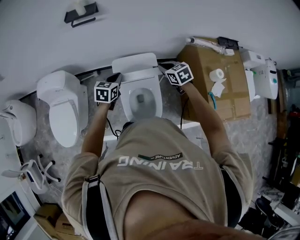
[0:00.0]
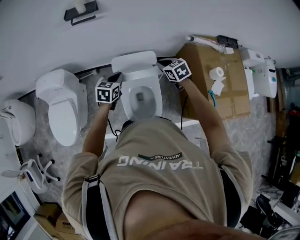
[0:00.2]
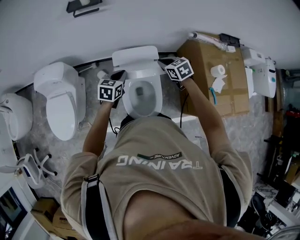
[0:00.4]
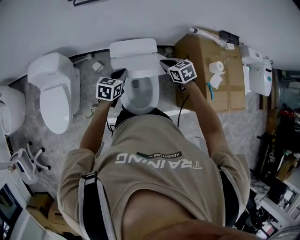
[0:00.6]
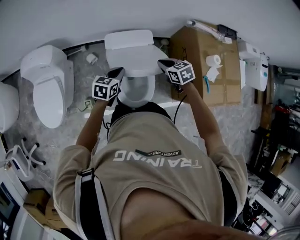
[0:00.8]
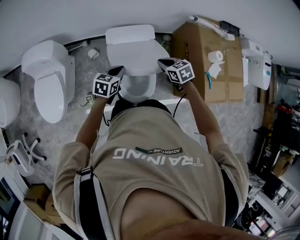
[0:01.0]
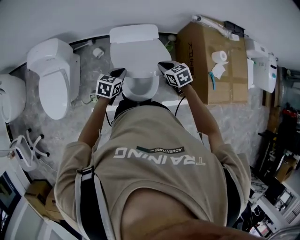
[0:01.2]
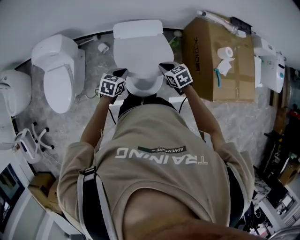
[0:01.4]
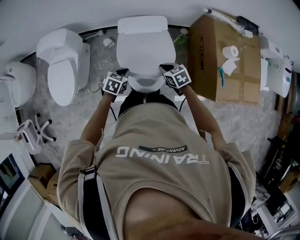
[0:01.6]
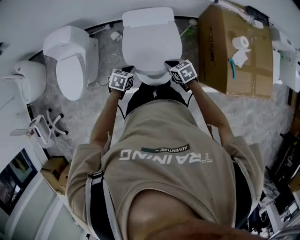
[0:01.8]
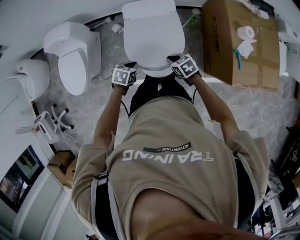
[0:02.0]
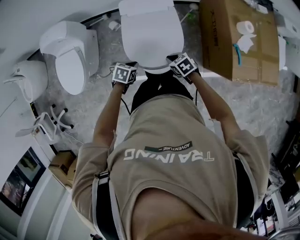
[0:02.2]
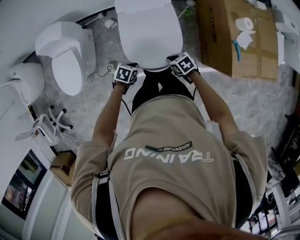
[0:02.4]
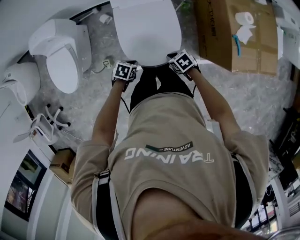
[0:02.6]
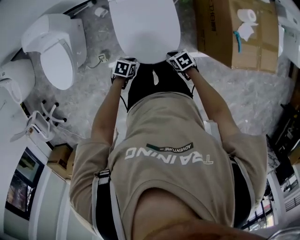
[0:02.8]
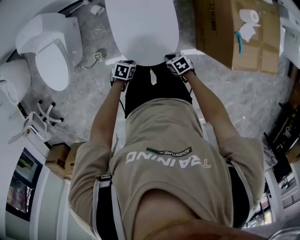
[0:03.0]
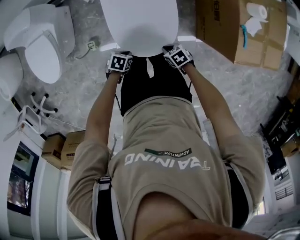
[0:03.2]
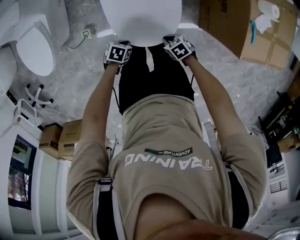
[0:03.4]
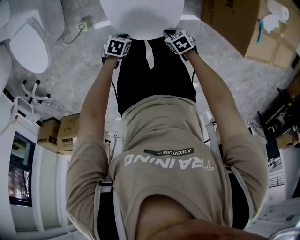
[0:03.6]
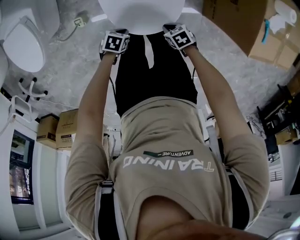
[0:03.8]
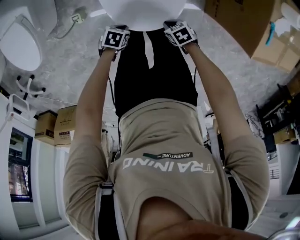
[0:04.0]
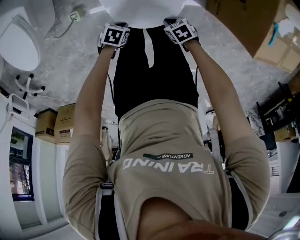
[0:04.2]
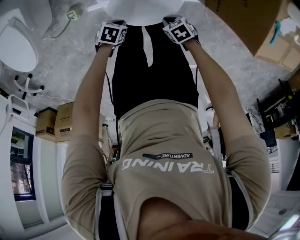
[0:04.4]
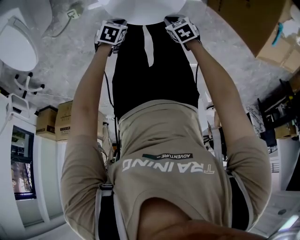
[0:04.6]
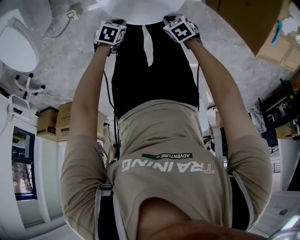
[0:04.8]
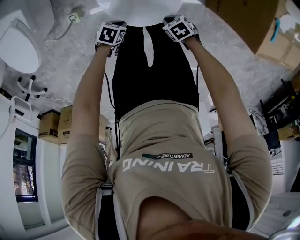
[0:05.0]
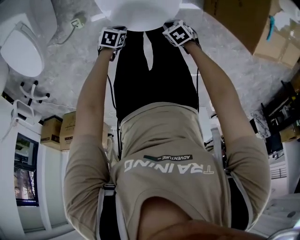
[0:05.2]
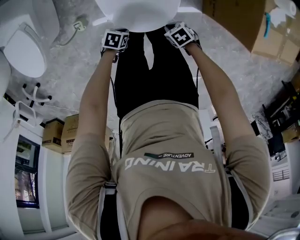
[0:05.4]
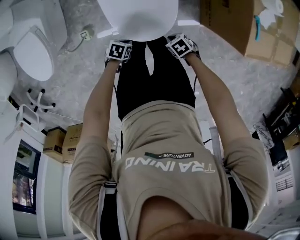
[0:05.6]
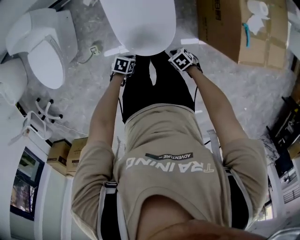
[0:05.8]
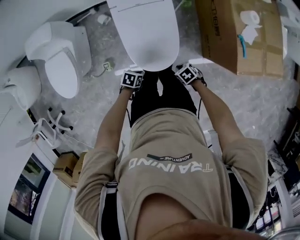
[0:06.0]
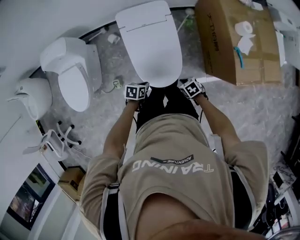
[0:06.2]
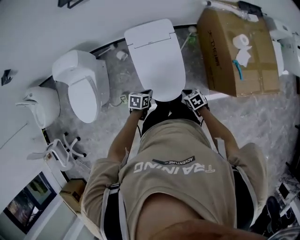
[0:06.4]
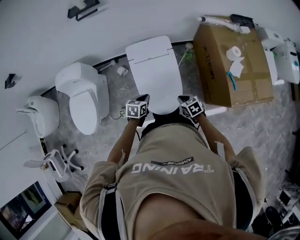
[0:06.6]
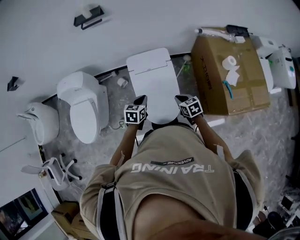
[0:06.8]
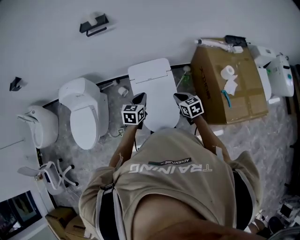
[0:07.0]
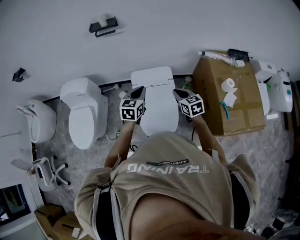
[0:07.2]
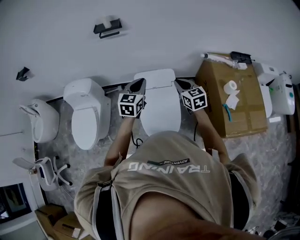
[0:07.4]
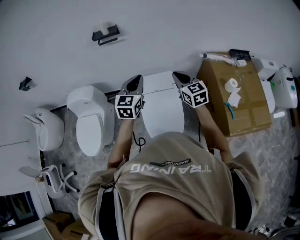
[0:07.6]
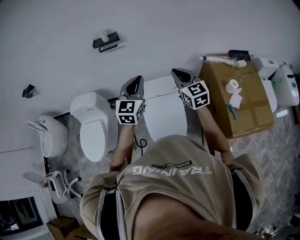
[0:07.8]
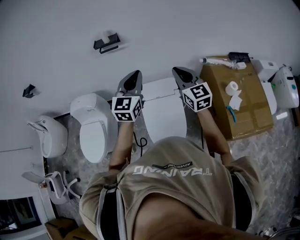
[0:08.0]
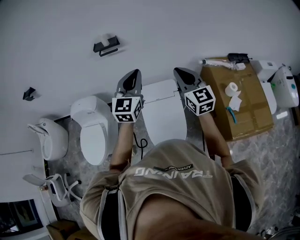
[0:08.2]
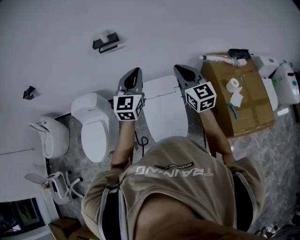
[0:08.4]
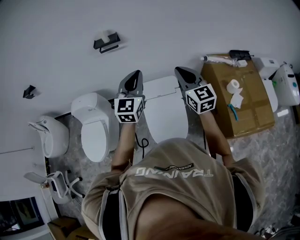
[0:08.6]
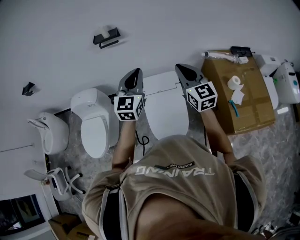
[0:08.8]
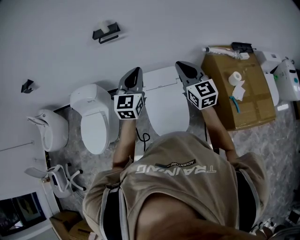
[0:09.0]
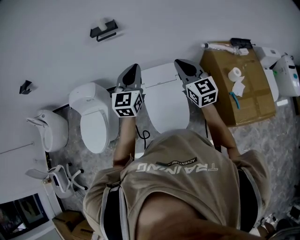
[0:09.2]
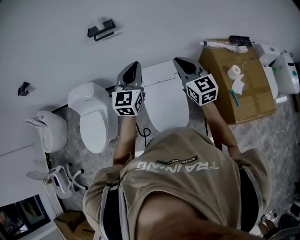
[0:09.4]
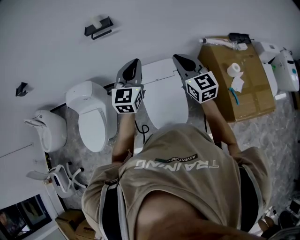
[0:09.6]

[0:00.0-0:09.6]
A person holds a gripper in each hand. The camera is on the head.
0:00.0 to 0:01.6: Both grippers travel together backward and downward, some 20 cm. The left gripper swivels roughly 20 degrees.
0:01.6 to 0:03.2: The grippers both shift downward by about 20 cm. The left gripper changes its angle by about 30 degrees. The right gripper rotates roughly 20 degrees.
0:03.2 to 0:04.8: The grippers both shift downward by roughly 15 cm.
0:04.8 to 0:06.4: Both grippers travel together upward, about 25 cm. The right gripper turns by approximately 30 degrees; the left gripper changes its angle by about 20 degrees.
0:06.4 to 0:08.0: The left gripper moves upward, approximately 50 cm, and angles its fingers upward, by about 50 degrees; the right gripper shifts roughly 50 cm upward and forward, and points its fingers about 60 degrees further upward.
0:08.0 to 0:09.6: The grippers make only small movements.

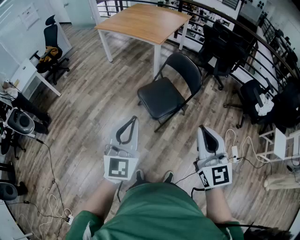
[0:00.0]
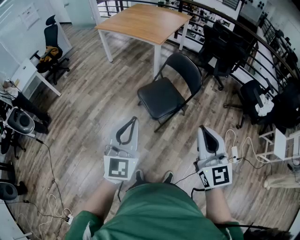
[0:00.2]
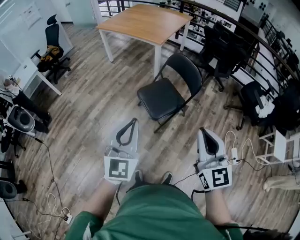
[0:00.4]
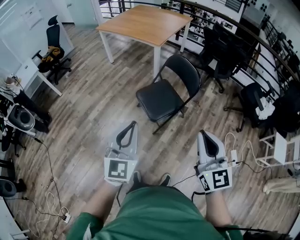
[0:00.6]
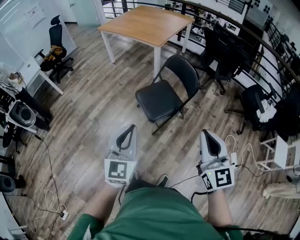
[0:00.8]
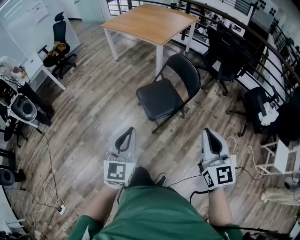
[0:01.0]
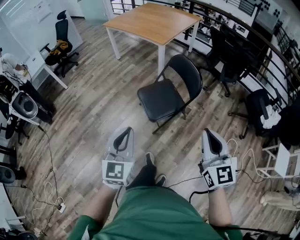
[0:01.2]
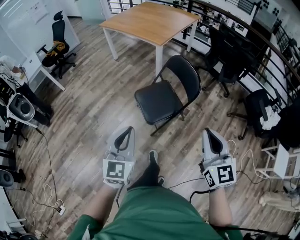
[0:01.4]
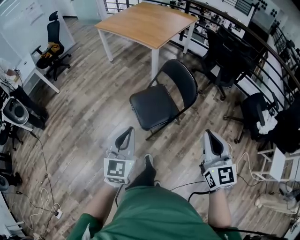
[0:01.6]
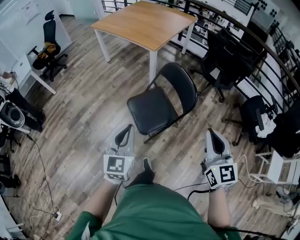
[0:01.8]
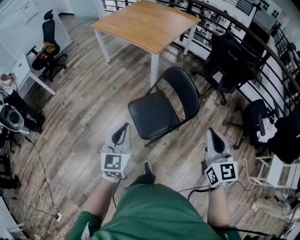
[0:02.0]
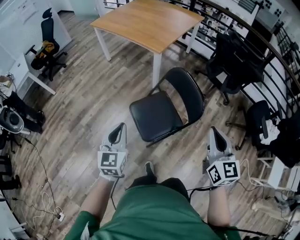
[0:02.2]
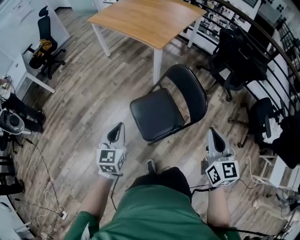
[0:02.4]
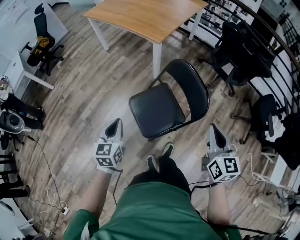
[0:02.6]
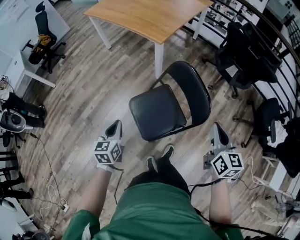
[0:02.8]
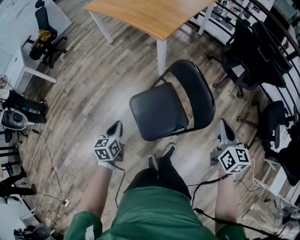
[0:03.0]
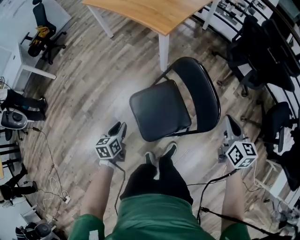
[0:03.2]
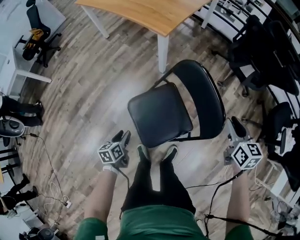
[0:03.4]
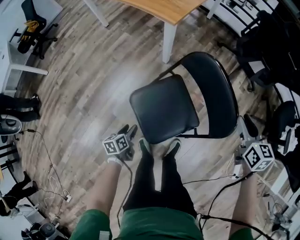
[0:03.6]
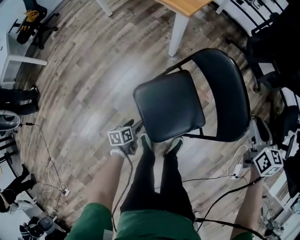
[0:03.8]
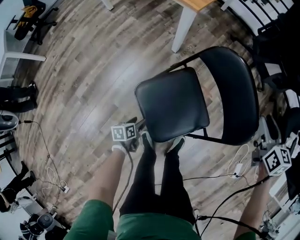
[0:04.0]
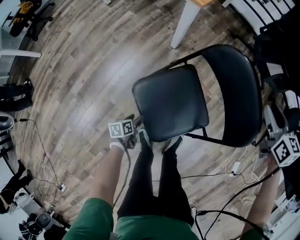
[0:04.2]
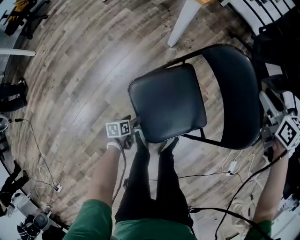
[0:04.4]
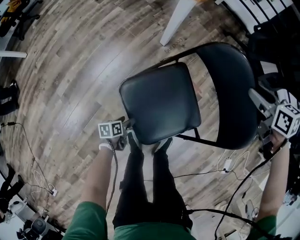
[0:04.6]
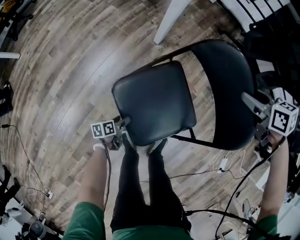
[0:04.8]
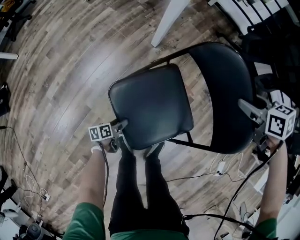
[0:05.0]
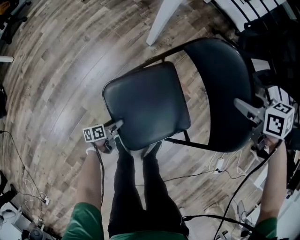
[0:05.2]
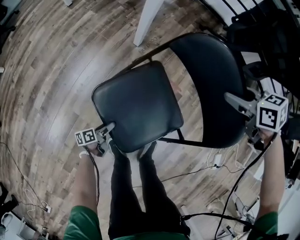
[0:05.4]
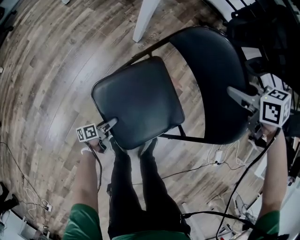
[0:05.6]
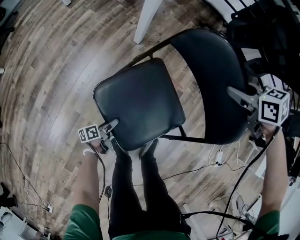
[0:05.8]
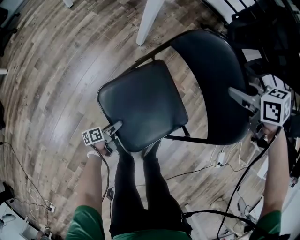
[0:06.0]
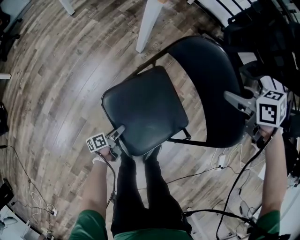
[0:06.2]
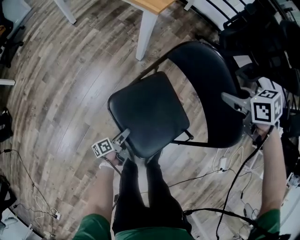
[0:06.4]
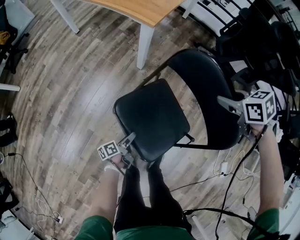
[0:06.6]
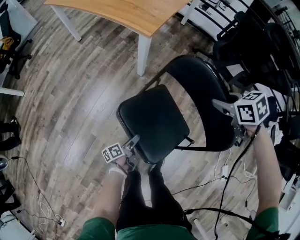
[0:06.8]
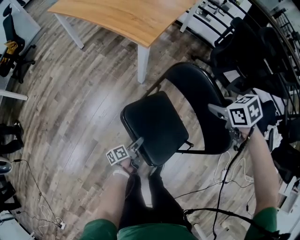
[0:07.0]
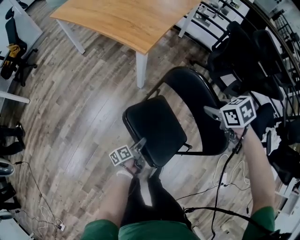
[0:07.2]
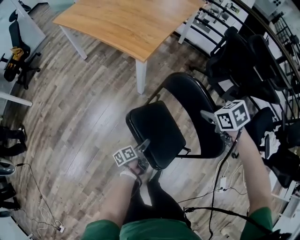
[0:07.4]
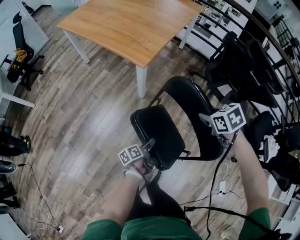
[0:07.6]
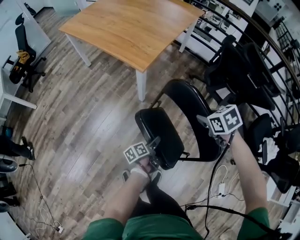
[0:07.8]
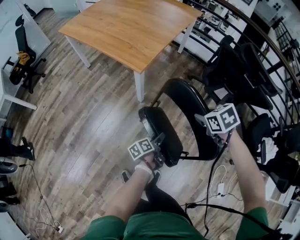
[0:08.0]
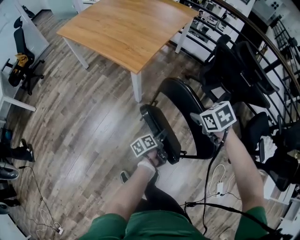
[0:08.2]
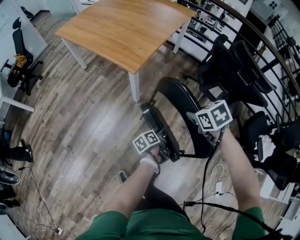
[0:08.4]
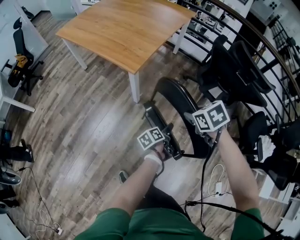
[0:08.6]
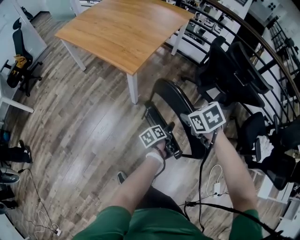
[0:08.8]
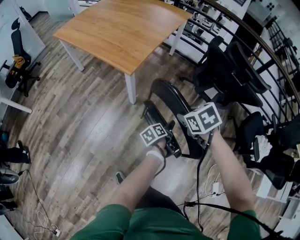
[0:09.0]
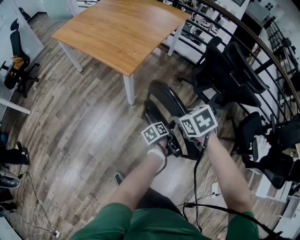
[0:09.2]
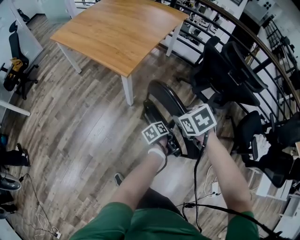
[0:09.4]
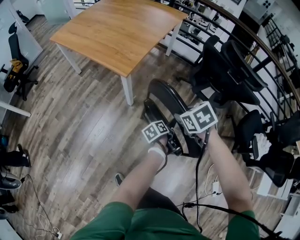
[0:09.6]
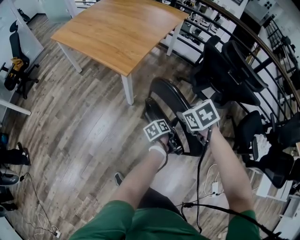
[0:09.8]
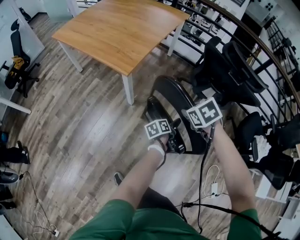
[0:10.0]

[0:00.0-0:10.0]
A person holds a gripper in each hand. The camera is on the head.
0:00.0 to 0:01.4: The left gripper moves to the right and downward, approximately 10 cm. Meanwhile the right gripper shifts approximately 15 cm to the right and forward.
0:01.4 to 0:02.8: The left gripper shifts roughly 40 cm forward and downward, and rotates roughly 30 degrees. Meanwhile the right gripper heads forward, covering about 35 cm, and turns by some 30 degrees.
0:02.8 to 0:04.2: The left gripper moves downward, approximately 50 cm, swivels roughly 50 degrees, and opens. The right gripper moves forward and downward, about 35 cm, rotates approximately 20 degrees, and opens.
0:04.2 to 0:05.8: Both grippers travel together downward, roughly 10 cm. The right gripper swivels about 30 degrees. The left gripper changes its angle by some 30 degrees.
0:05.8 to 0:07.2: The right gripper shifts about 15 cm upward; the left gripper heads upward and to the right, covering some 30 cm.
0:07.2 to 0:08.6: The right gripper travels upward by approximately 10 cm, while the left gripper travels to the right, upward and forward by approximately 25 cm.
0:08.6 to 0:10.0: The left gripper heads to the right, covering about 10 cm.

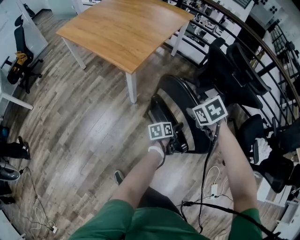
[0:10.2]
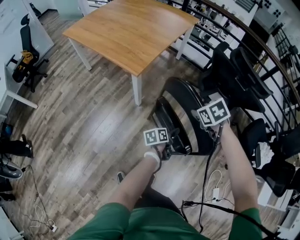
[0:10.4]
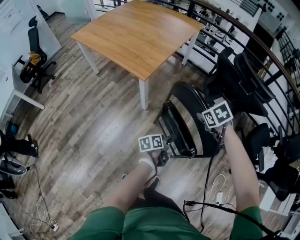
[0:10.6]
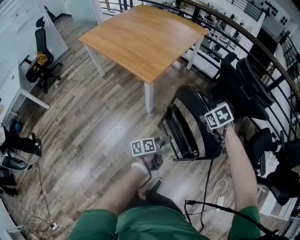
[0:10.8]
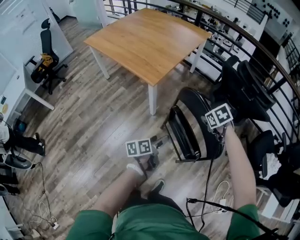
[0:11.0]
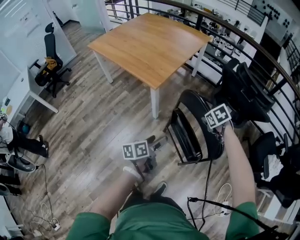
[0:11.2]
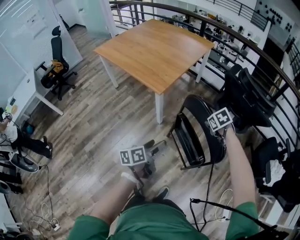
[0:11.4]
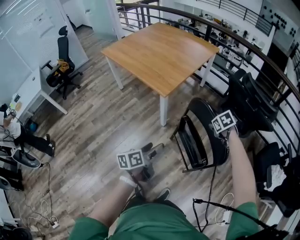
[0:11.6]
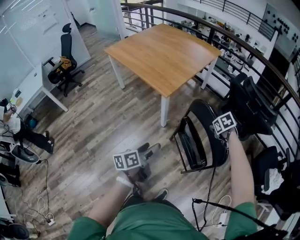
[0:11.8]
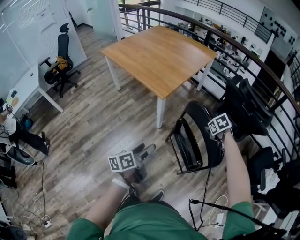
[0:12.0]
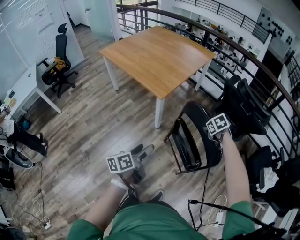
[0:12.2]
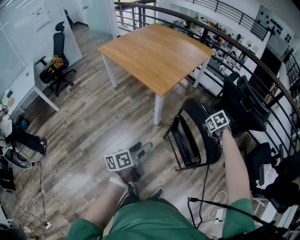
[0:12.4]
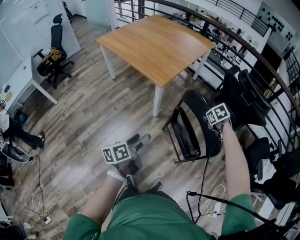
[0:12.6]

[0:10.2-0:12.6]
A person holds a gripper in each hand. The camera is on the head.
0:10.2 to 0:11.4: The left gripper heads to the left, upward and backward, covering roughly 30 cm.
0:11.4 to 0:12.6: The left gripper is displaced to the left by approximately 10 cm.

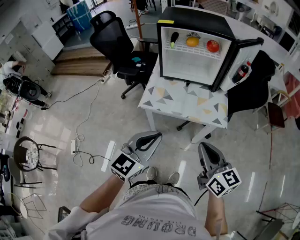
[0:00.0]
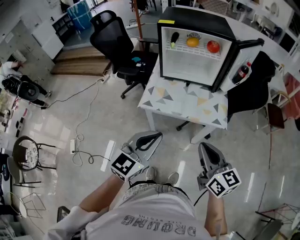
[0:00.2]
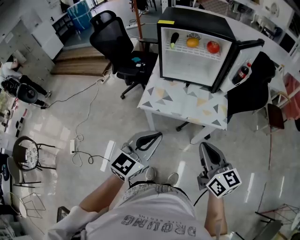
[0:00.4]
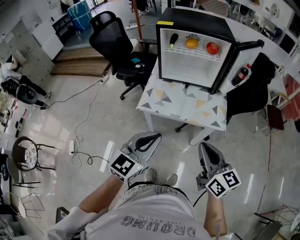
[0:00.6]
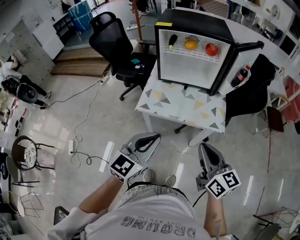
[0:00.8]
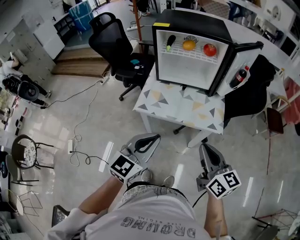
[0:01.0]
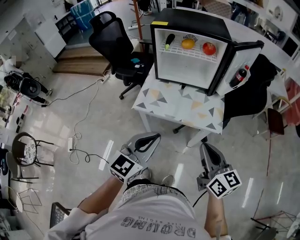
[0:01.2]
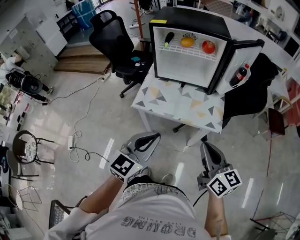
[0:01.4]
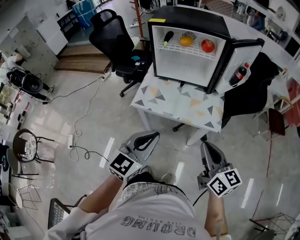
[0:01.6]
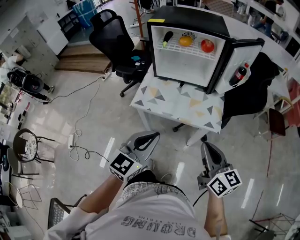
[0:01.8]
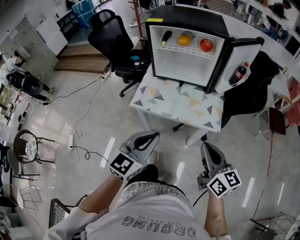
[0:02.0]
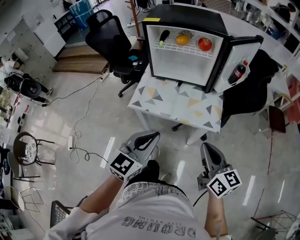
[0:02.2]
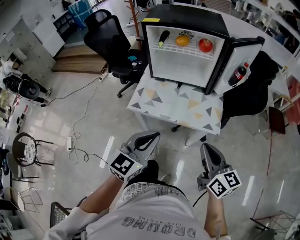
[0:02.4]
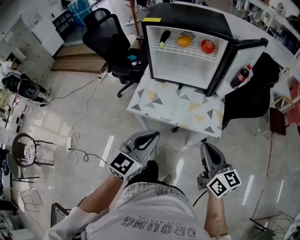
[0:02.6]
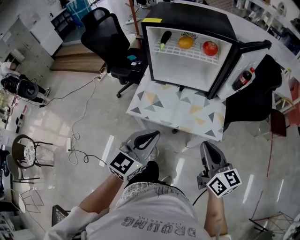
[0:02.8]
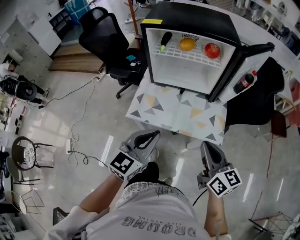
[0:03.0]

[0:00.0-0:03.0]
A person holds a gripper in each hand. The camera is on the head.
0:00.0 to 0:01.6: The two grippers go roughly 5 cm to the right.
0:01.6 to 0:03.0: The two grippers go roughly 10 cm forward.
